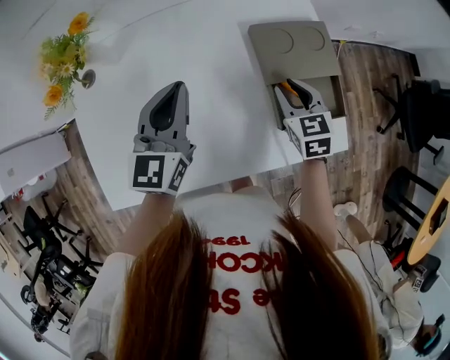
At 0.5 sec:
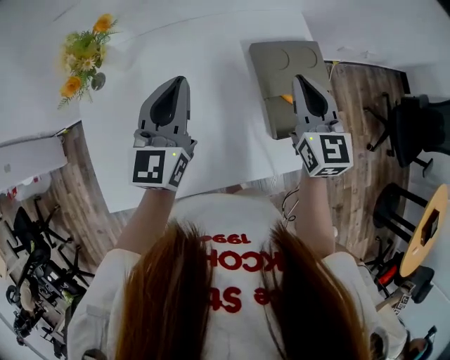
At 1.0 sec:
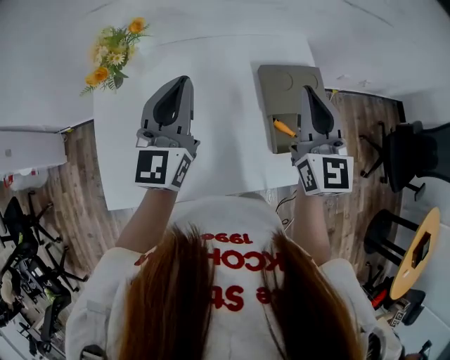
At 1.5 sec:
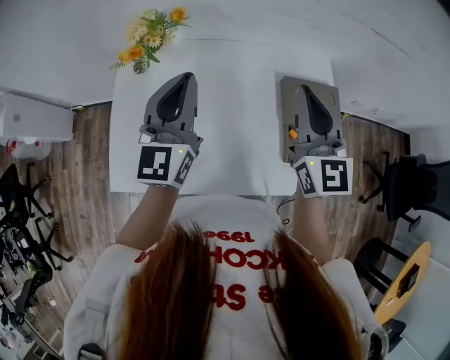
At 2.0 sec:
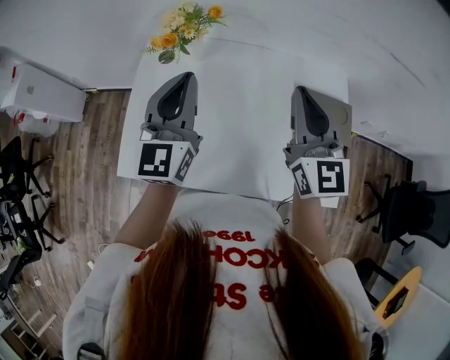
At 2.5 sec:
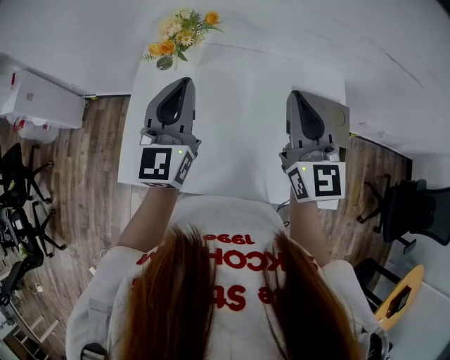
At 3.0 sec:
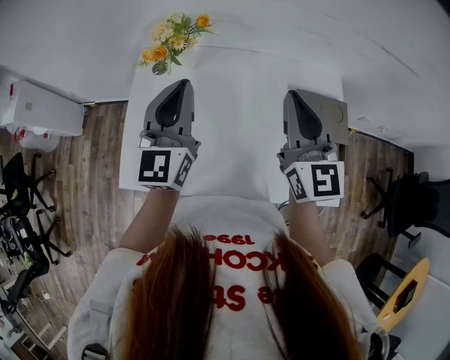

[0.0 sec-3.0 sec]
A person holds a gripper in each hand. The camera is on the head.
0.0 sec to 1.5 sec: The left gripper shifts roughly 15 cm upward and to the left, and changes its angle by some 20 degrees, while the right gripper heads upward, covering some 25 cm, angles its fingers upward, by some 40 degrees, and closes up.
1.5 sec to 3.0 sec: Both grippers move to the left, about 5 cm.

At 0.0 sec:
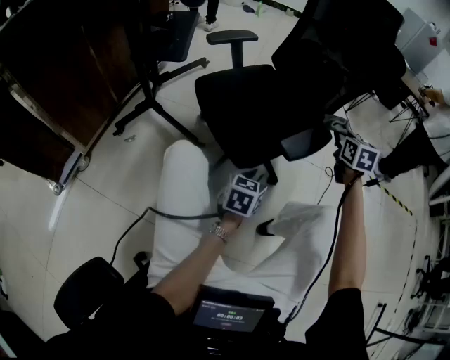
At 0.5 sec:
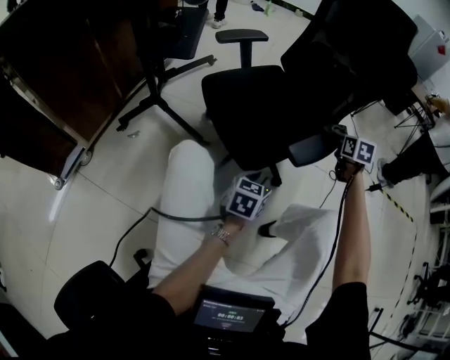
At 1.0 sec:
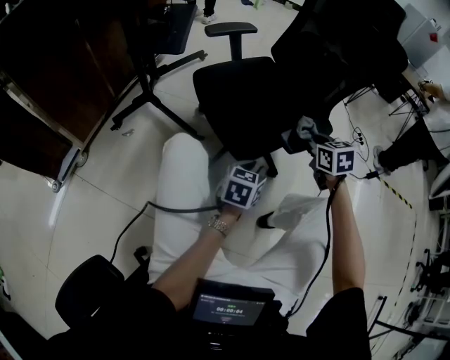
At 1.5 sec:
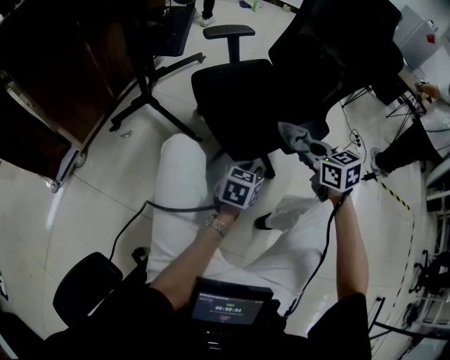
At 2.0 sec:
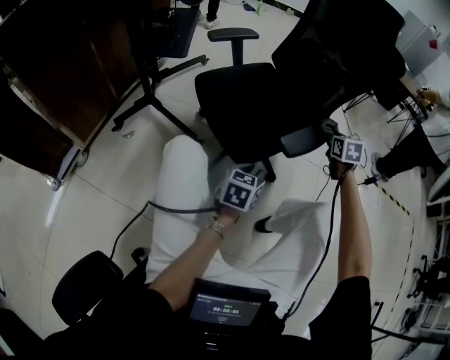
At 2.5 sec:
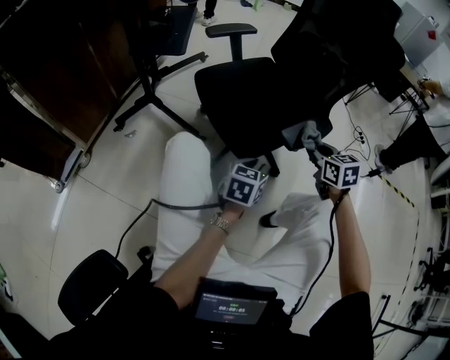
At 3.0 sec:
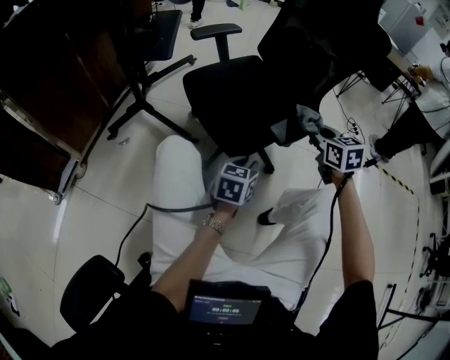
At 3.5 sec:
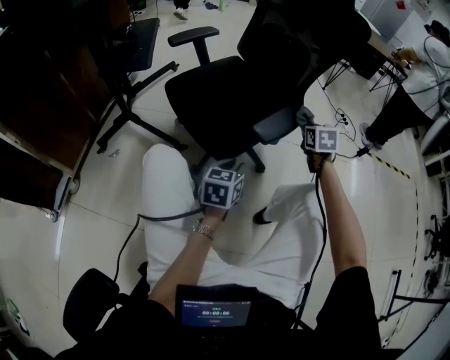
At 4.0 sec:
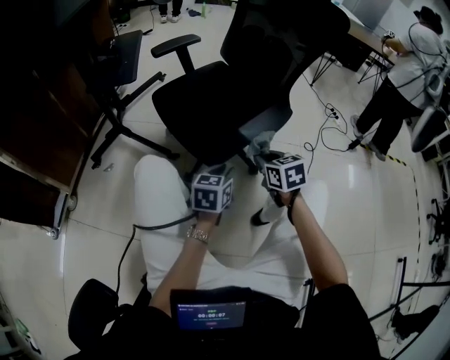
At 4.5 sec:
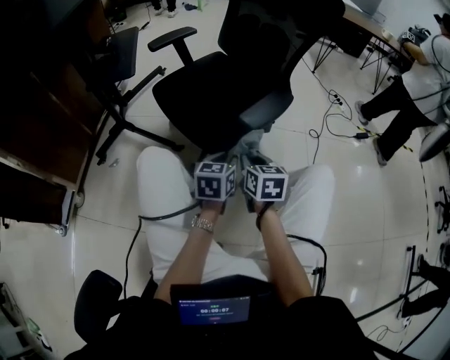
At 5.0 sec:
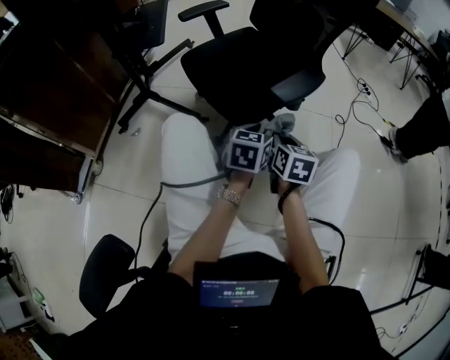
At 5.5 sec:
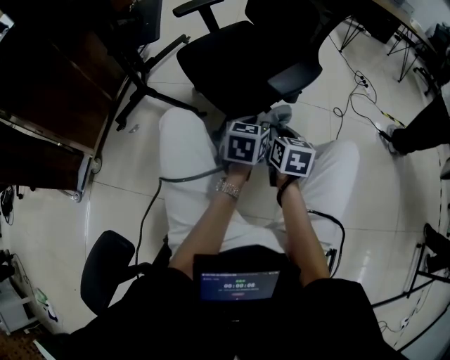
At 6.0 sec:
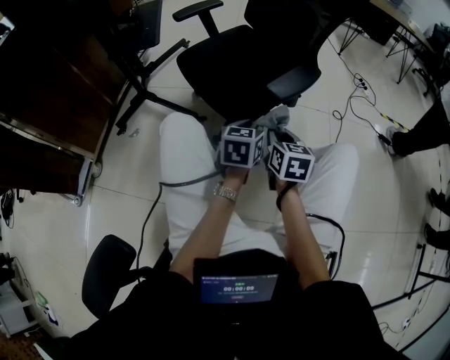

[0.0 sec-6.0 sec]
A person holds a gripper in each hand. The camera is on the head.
0.0 sec to 2.0 sec: The right gripper heads downward, covering about 10 cm, and goes backward and returns, some 15 cm each way.
2.0 sec to 4.0 sec: The right gripper goes forward and backward, approximately 20 cm each way, reversing 2 times.
4.0 sec to 6.0 sec: The right gripper moves backward, about 5 cm, and swivels about 20 degrees.

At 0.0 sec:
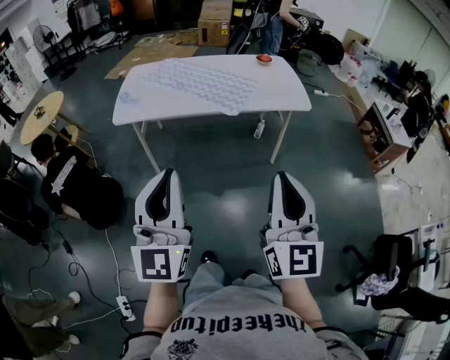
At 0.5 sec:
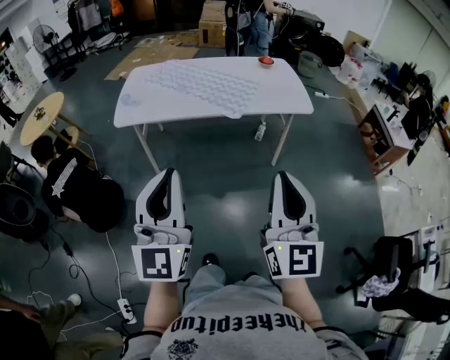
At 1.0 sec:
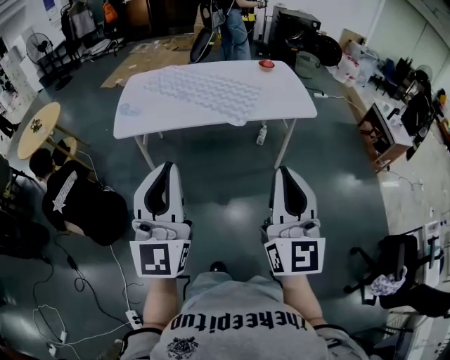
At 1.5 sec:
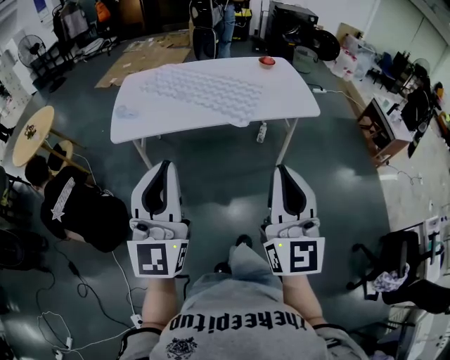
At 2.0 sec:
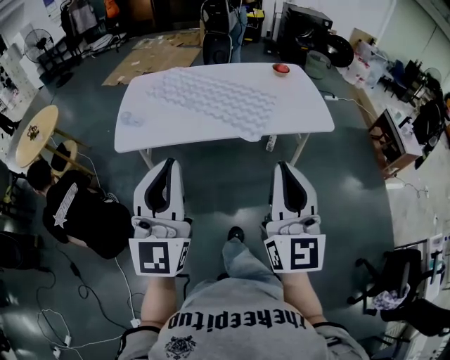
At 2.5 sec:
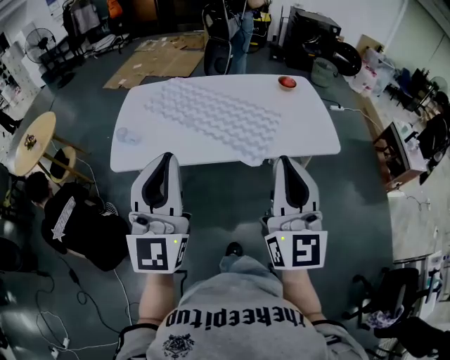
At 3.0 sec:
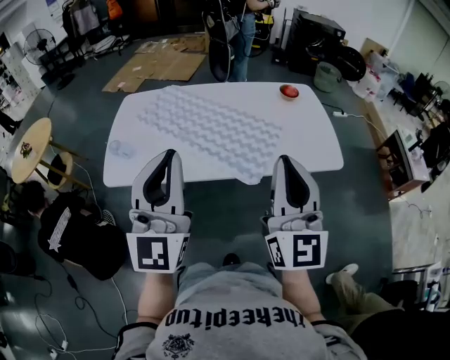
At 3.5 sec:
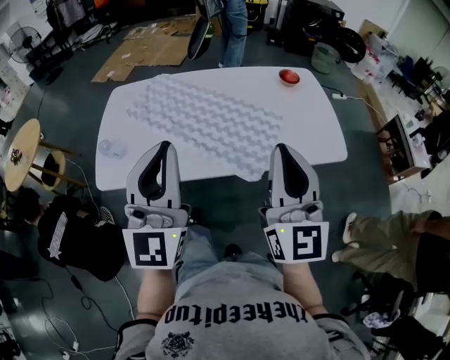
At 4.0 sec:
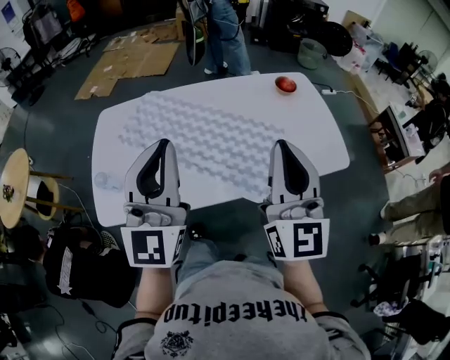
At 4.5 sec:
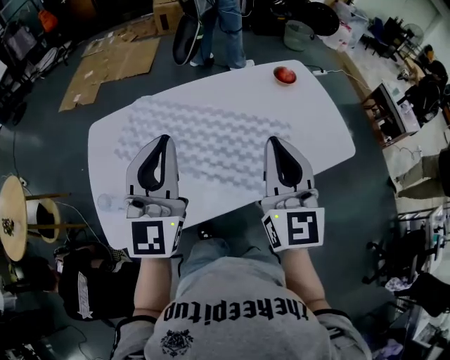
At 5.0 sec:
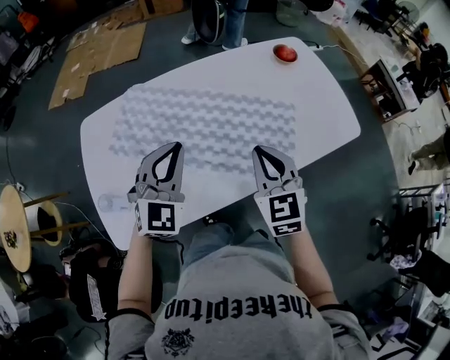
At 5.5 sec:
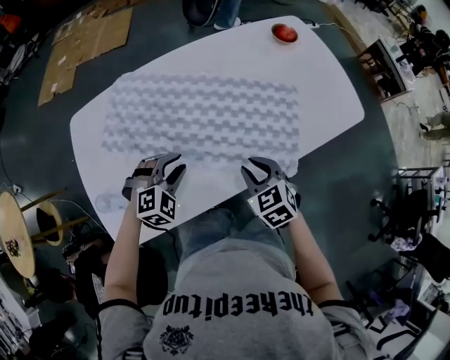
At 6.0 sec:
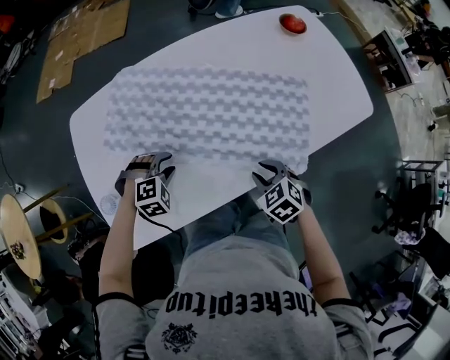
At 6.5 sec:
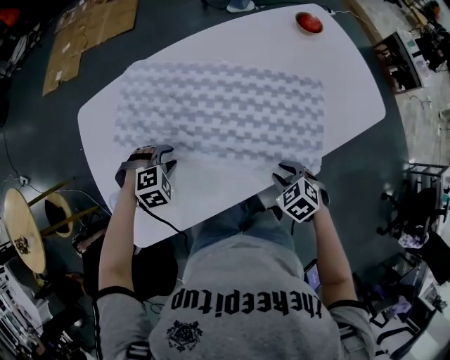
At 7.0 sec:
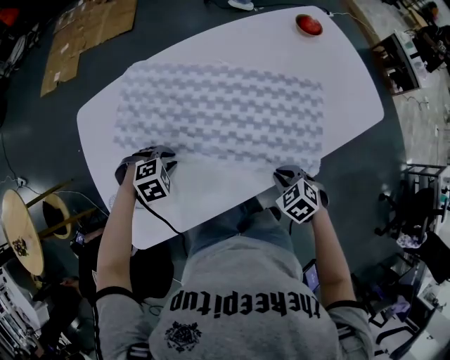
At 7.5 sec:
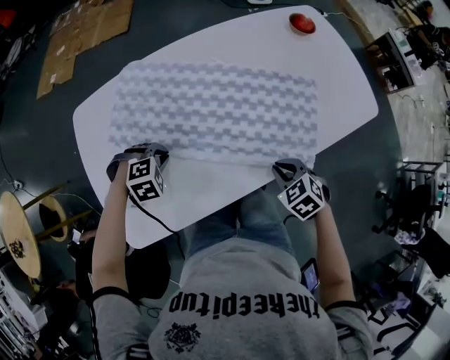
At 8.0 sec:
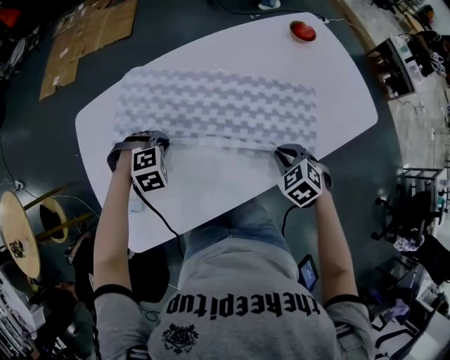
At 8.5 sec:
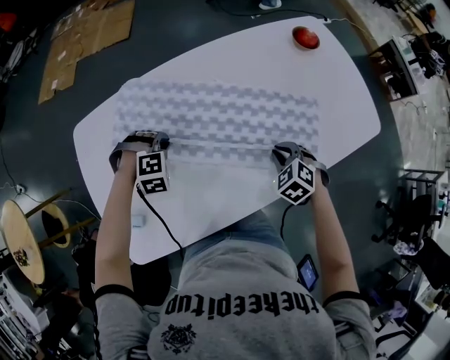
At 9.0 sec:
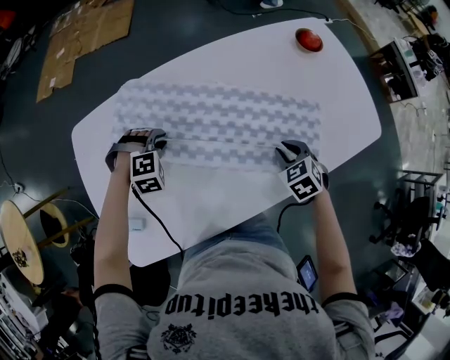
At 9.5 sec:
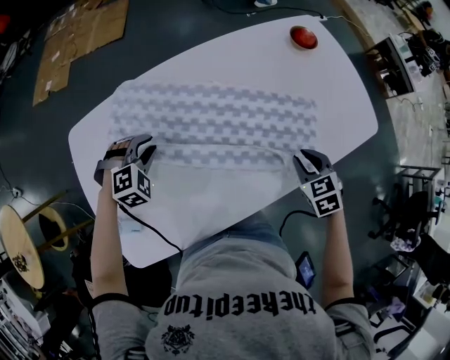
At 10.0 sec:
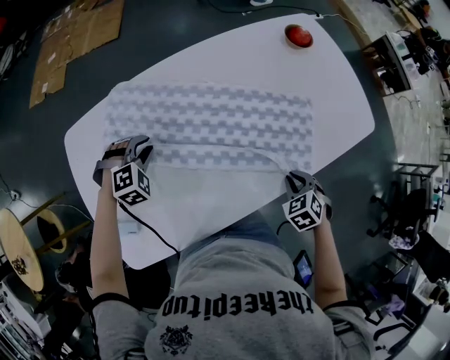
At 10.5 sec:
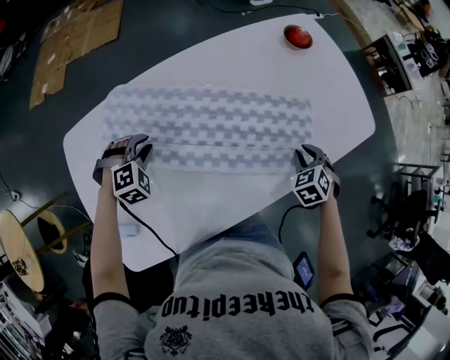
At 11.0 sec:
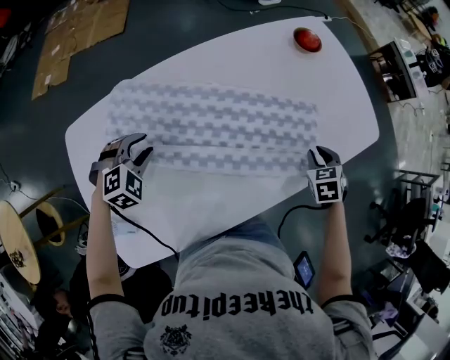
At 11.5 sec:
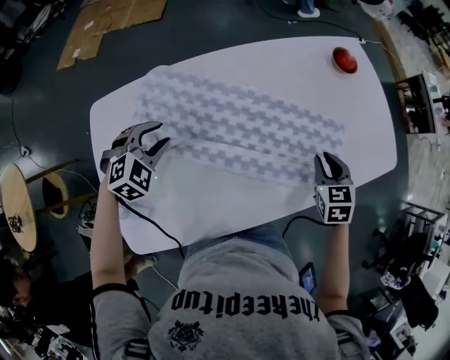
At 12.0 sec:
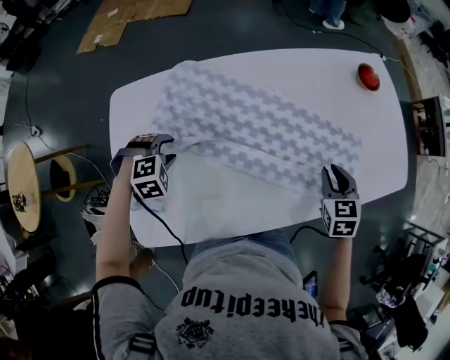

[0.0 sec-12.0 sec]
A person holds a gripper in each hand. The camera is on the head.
0.0 sec to 2.0 sec: The grippers both shift forward and to the left by roughly 25 cm.
2.0 sec to 4.0 sec: Both grippers move forward, roughly 40 cm.
4.0 sec to 6.0 sec: Both grippers travel together downward, some 40 cm. The right gripper angles its fingers downward, by approximately 70 degrees, and opens, while the left gripper tips its fingers downward by roughly 80 degrees, and opens up.
6.0 sec to 8.0 sec: The left gripper moves roughly 10 cm, and closes its fingers, while the right gripper changes place by some 10 cm.
8.0 sec to 10.0 sec: The left gripper goes roughly 10 cm forward, while the right gripper heads to the right, covering approximately 5 cm, and travels forward and back again, some 10 cm each way.
10.0 sec to 12.0 sec: The left gripper moves to the left and backward, about 10 cm; the right gripper moves forward, upward and to the left, approximately 15 cm, and turns by some 20 degrees.

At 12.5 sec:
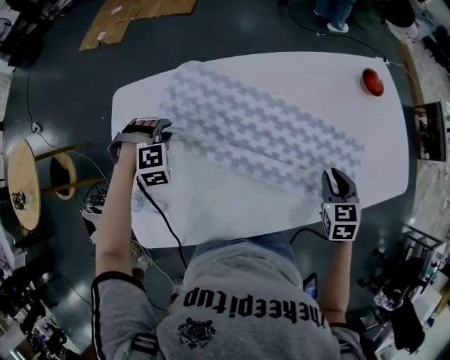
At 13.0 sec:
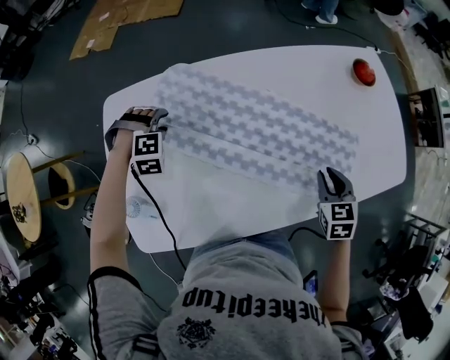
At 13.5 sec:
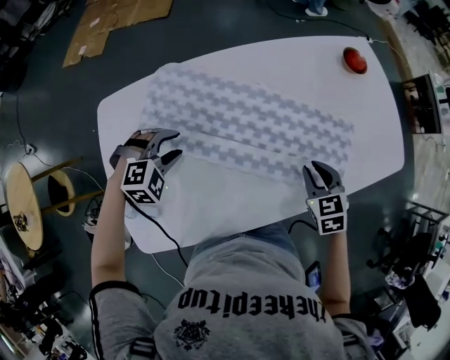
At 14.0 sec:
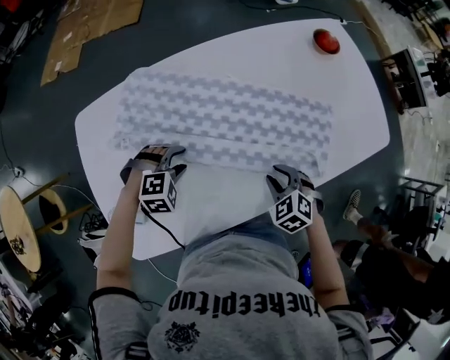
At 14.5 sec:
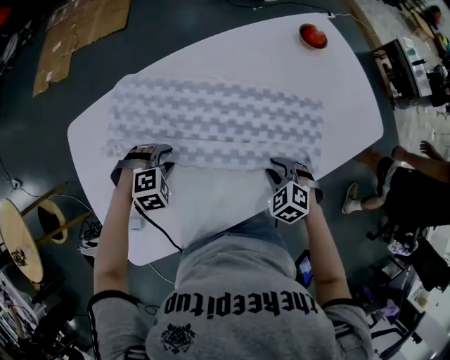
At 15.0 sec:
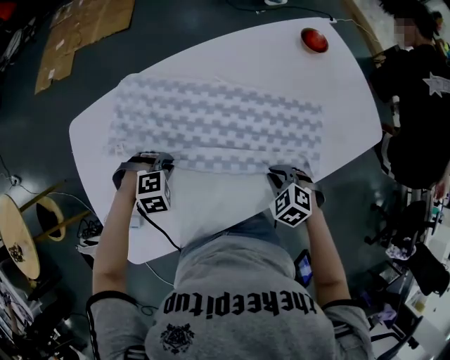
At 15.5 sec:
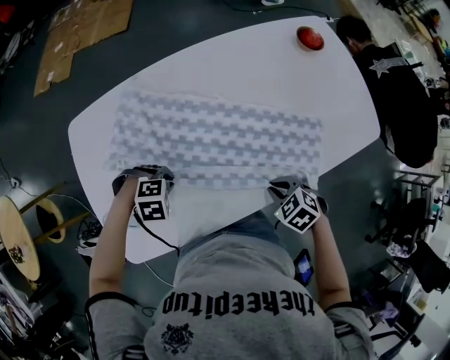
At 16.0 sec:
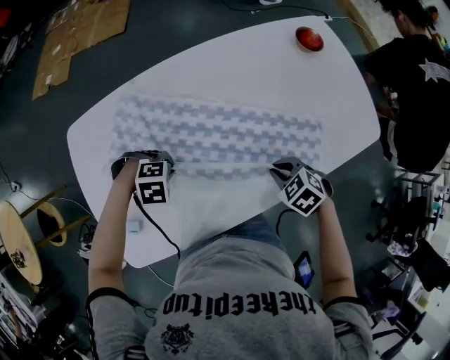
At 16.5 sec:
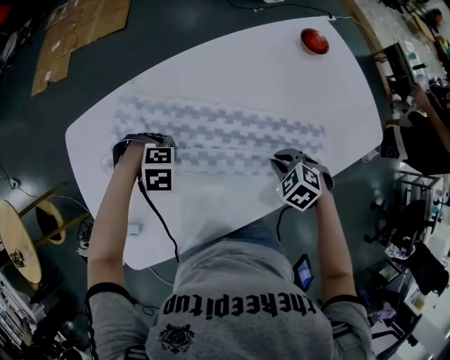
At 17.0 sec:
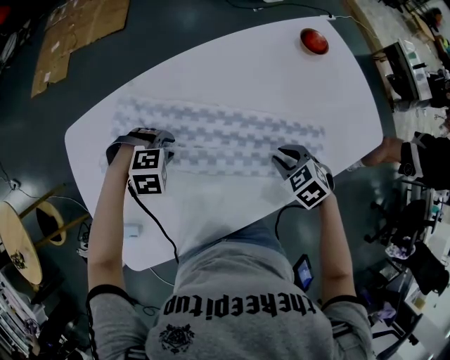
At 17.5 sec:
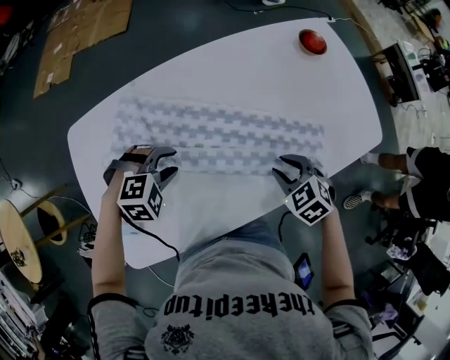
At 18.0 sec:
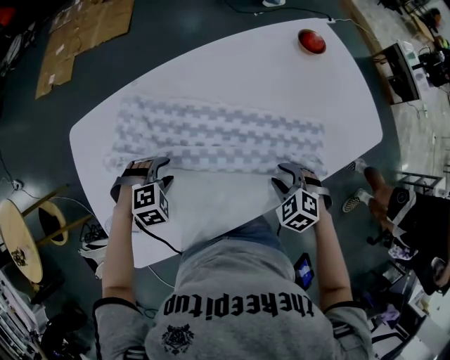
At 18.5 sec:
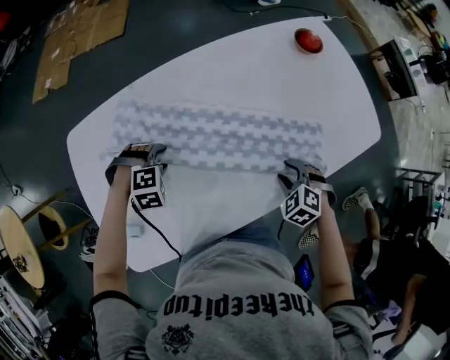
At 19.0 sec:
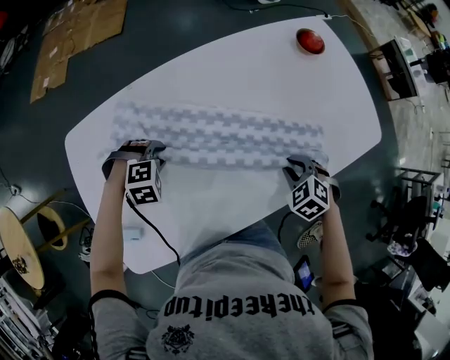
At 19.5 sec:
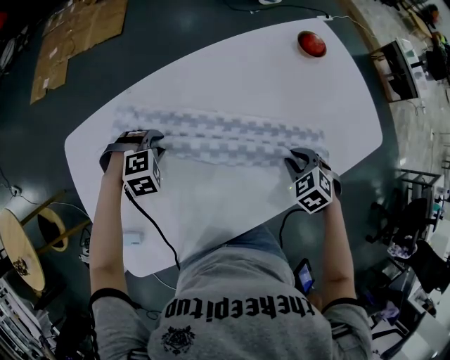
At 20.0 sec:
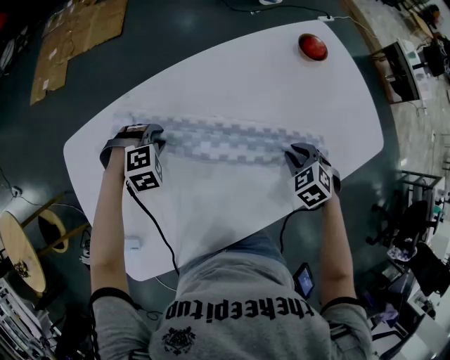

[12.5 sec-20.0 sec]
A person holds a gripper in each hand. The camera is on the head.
12.5 sec to 14.5 sec: The left gripper travels to the right by about 15 cm, and swivels approximately 20 degrees. The right gripper is displaced downward and backward by about 10 cm, and changes its angle by approximately 30 degrees.
14.5 sec to 16.5 sec: The left gripper rotates some 20 degrees, and closes.
16.5 sec to 18.0 sec: The left gripper changes place by roughly 5 cm, swivels about 20 degrees, and opens its fingers; the right gripper moves roughly 5 cm, and opens.
18.0 sec to 20.0 sec: The right gripper moves roughly 15 cm. Meanwhile the left gripper changes place by approximately 15 cm.
